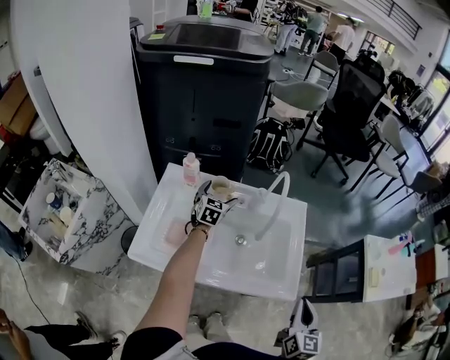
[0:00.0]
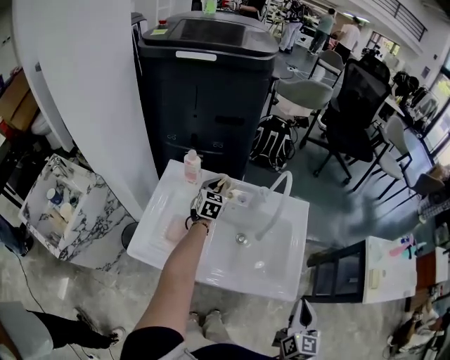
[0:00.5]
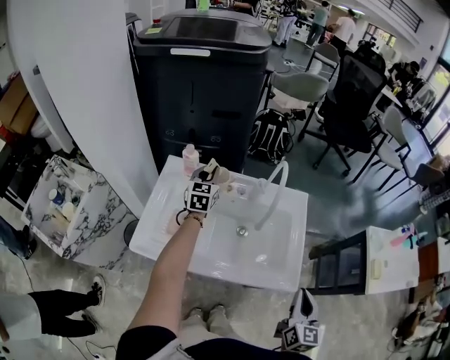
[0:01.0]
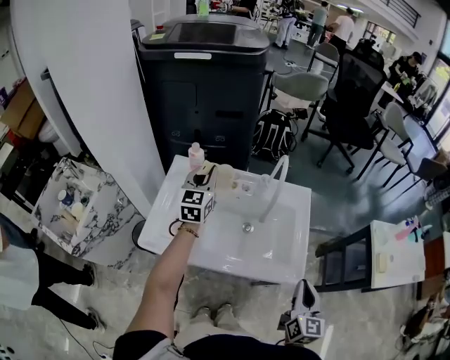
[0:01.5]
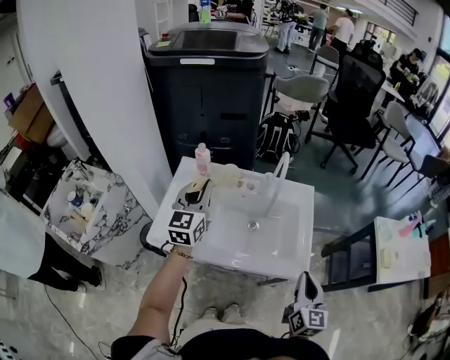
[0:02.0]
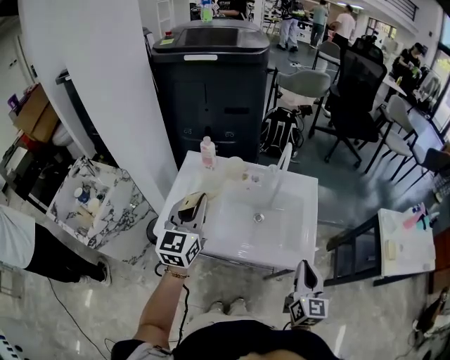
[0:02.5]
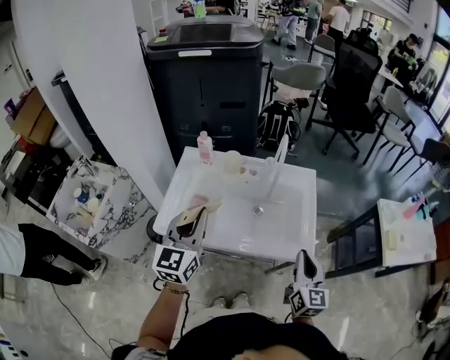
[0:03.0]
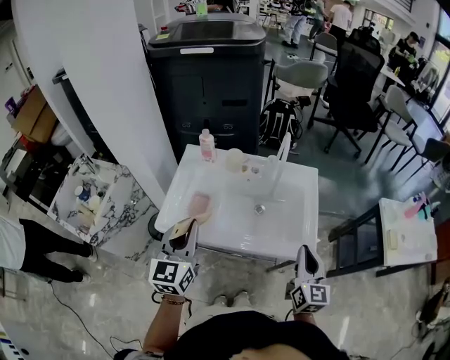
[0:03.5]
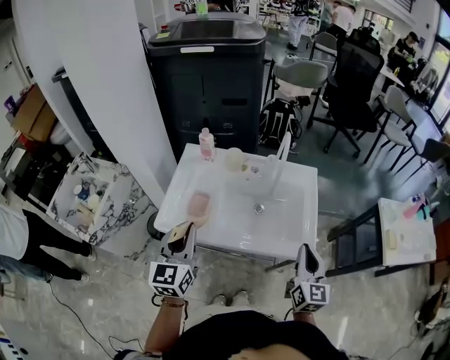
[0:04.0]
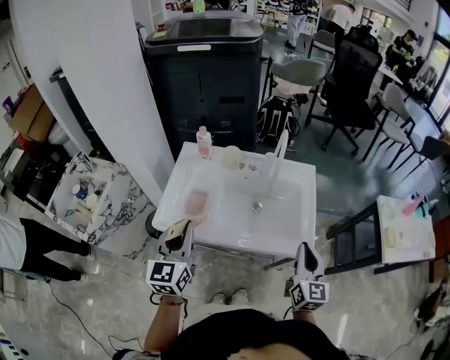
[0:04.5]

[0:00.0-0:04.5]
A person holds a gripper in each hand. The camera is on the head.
0:00.0 to 0:02.0: The left gripper is displaced upward and backward by approximately 30 cm, changes its angle by approximately 30 degrees, and closes up.
0:02.0 to 0:04.5: The left gripper travels backward by approximately 20 cm.

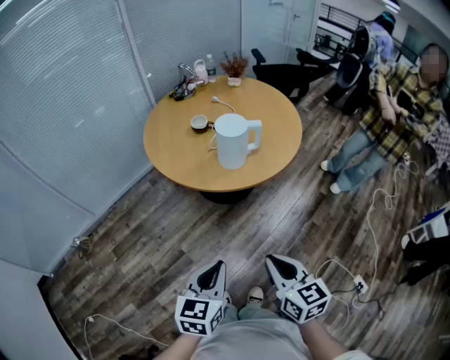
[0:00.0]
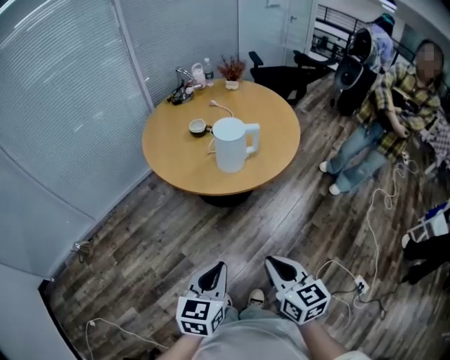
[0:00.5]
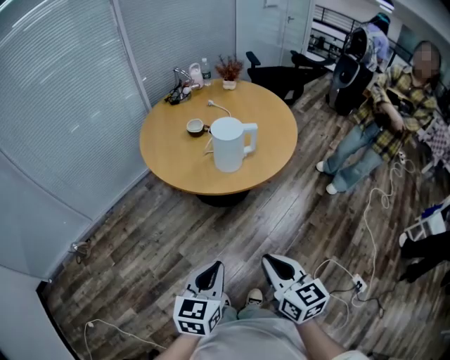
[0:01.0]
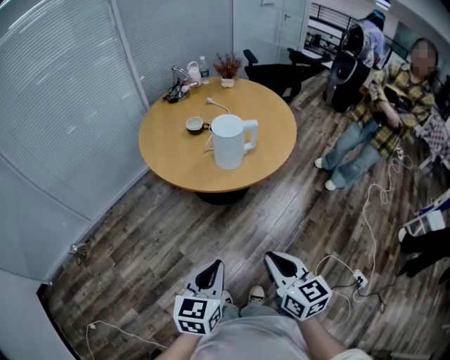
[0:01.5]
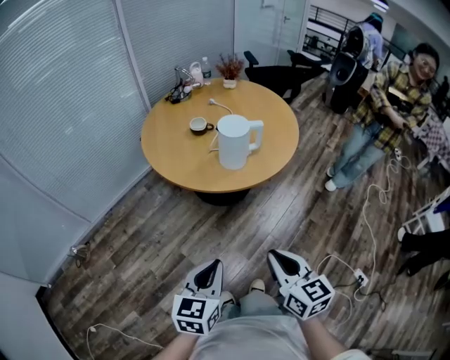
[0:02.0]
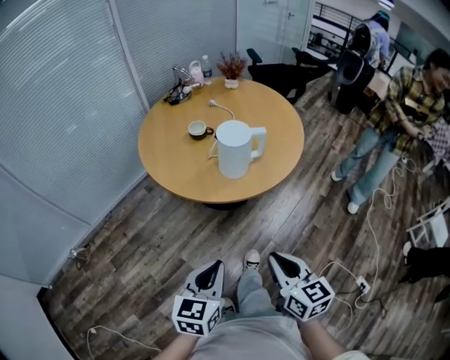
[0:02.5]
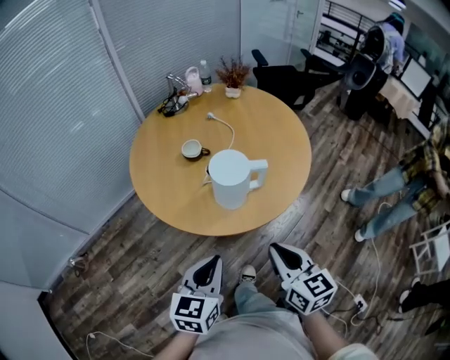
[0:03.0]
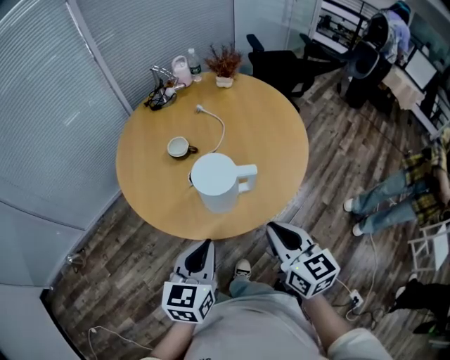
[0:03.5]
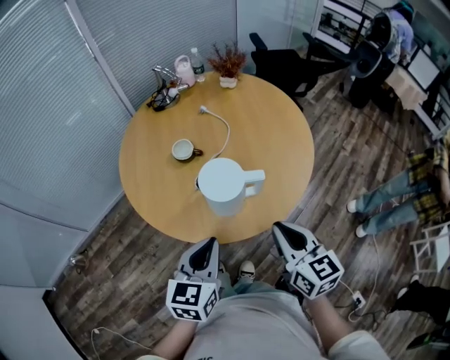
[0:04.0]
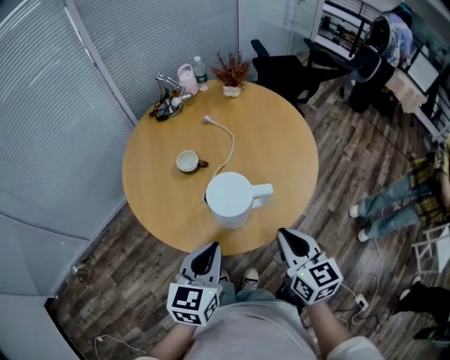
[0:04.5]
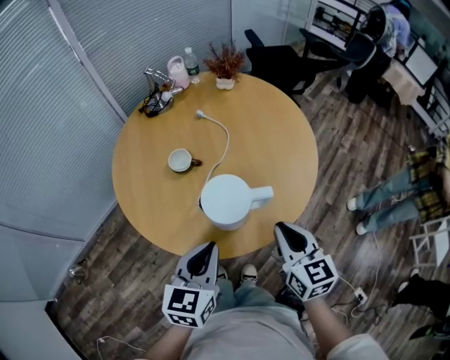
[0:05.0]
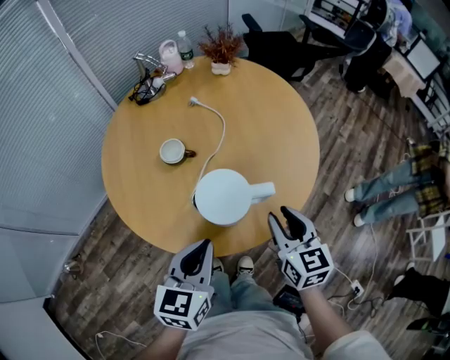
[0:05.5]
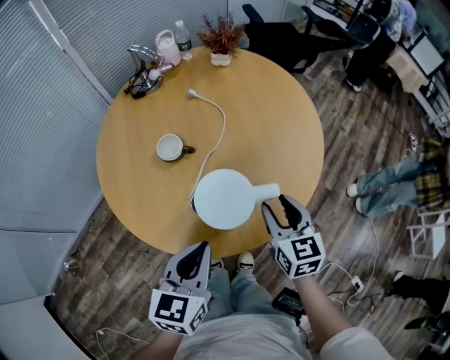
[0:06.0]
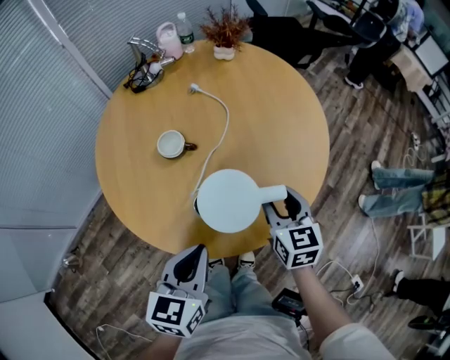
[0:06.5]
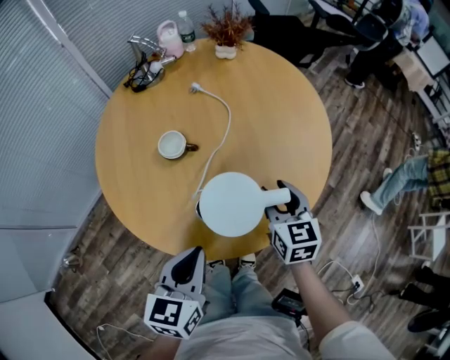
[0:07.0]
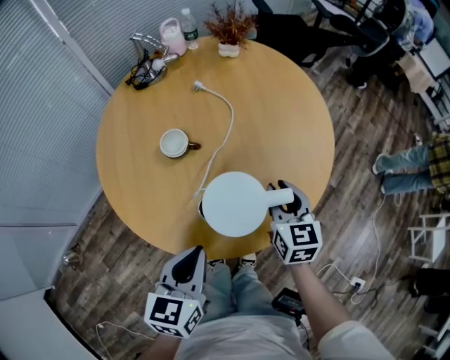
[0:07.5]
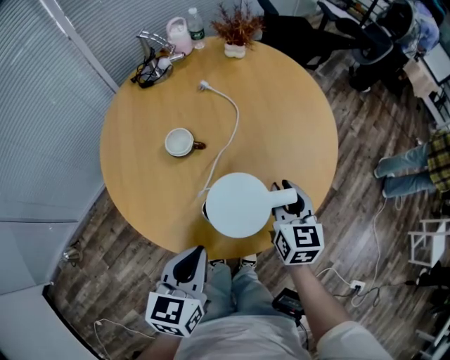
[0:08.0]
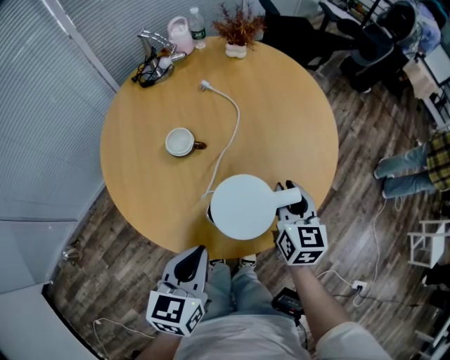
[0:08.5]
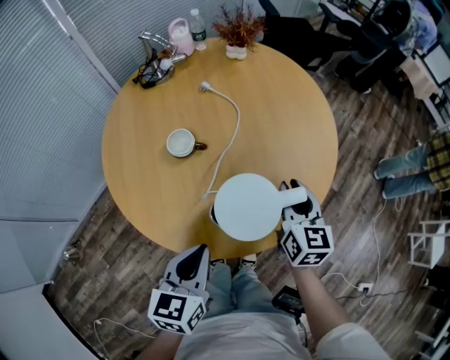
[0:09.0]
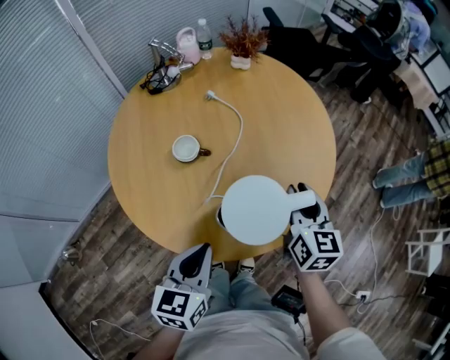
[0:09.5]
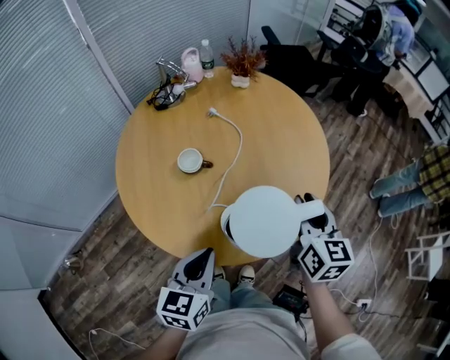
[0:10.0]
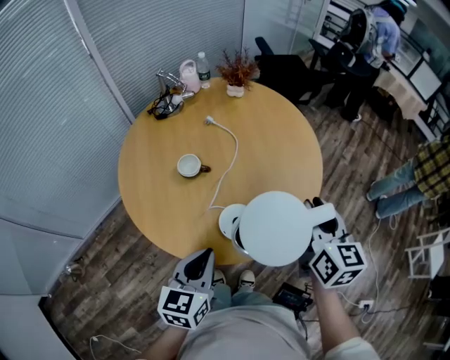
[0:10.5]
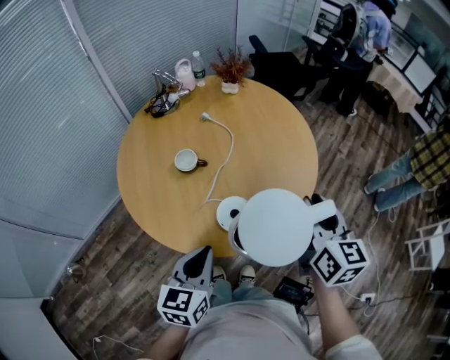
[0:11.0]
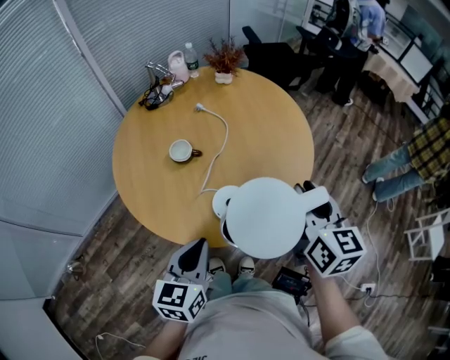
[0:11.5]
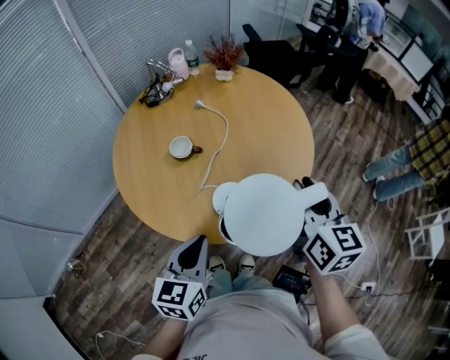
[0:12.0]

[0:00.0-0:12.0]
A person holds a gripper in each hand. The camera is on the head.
0:00.0 to 0:02.0: The grippers make only small movements.
0:02.0 to 0:04.0: The grippers both shift forward by about 35 cm.
0:04.0 to 0:06.0: The left gripper travels forward by some 5 cm. The right gripper heads forward and downward, covering approximately 15 cm, and opens its fingers.
0:06.0 to 0:08.0: The right gripper travels forward by approximately 5 cm.
0:08.0 to 0:10.0: The right gripper shifts about 10 cm upward.
0:10.0 to 0:12.0: The left gripper heads backward, covering some 5 cm. The right gripper heads backward and upward, covering about 10 cm.

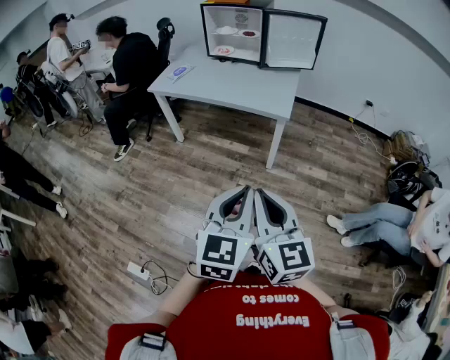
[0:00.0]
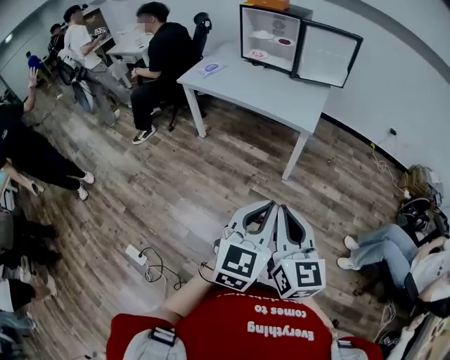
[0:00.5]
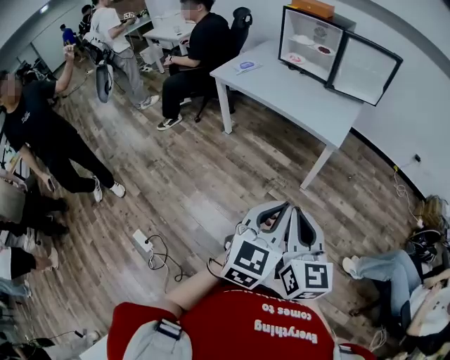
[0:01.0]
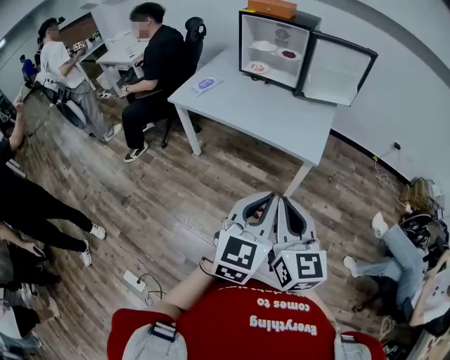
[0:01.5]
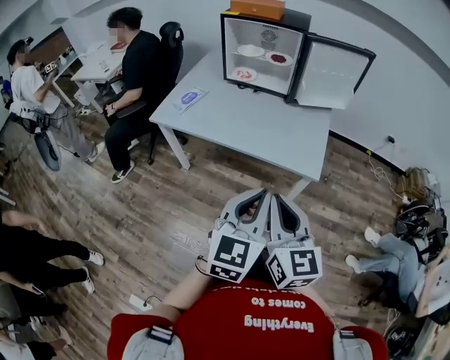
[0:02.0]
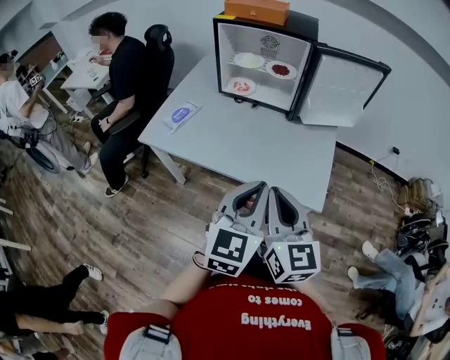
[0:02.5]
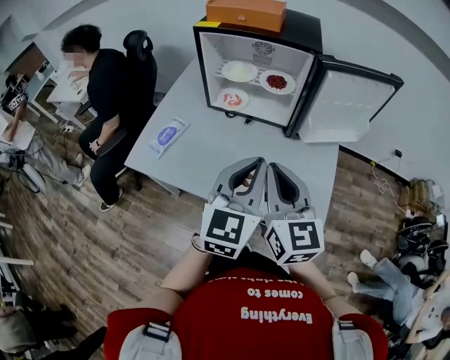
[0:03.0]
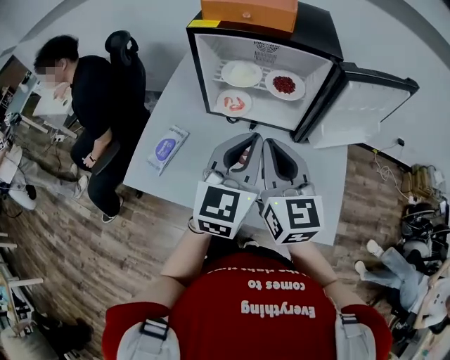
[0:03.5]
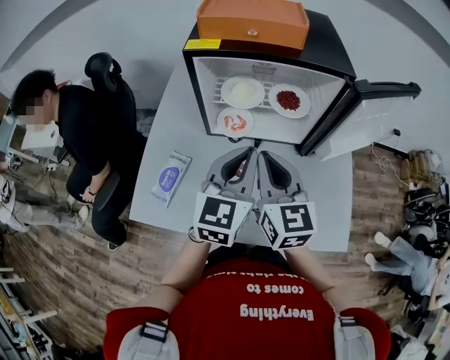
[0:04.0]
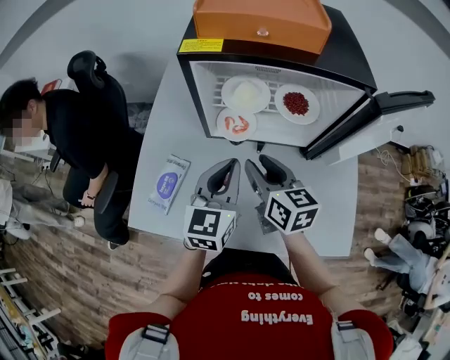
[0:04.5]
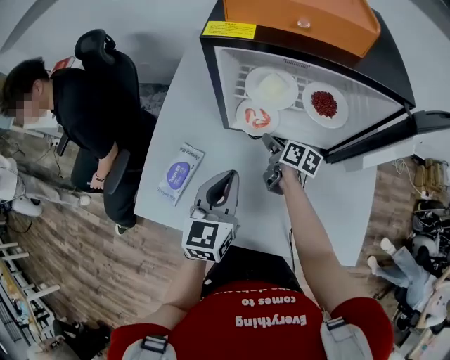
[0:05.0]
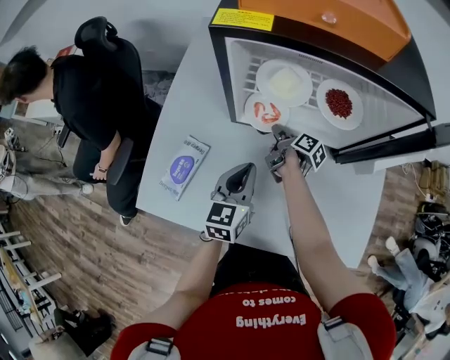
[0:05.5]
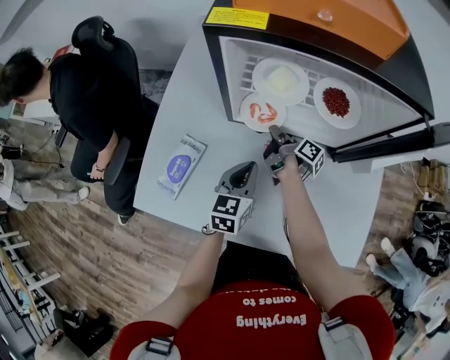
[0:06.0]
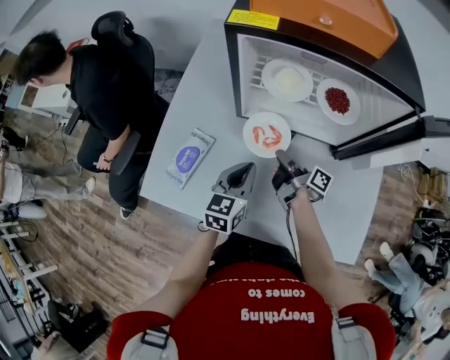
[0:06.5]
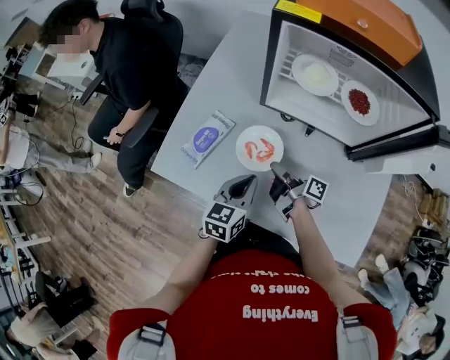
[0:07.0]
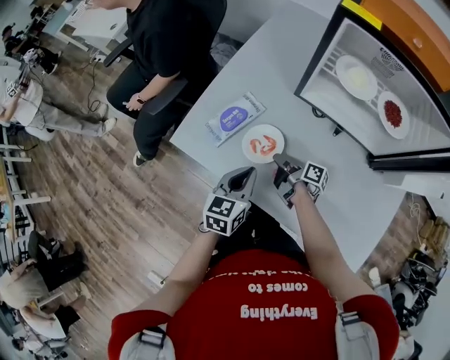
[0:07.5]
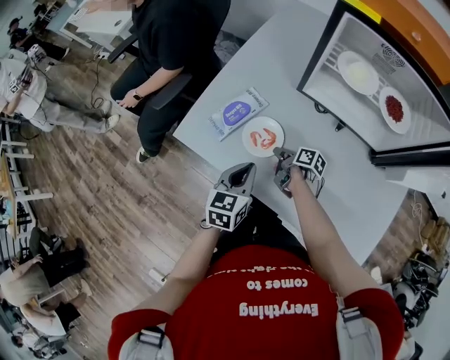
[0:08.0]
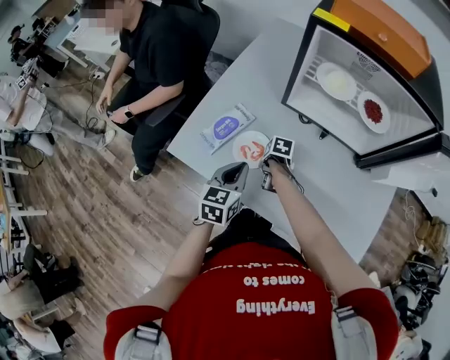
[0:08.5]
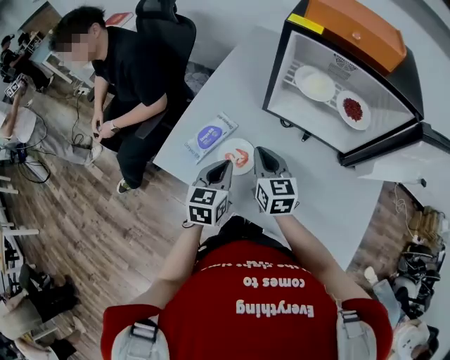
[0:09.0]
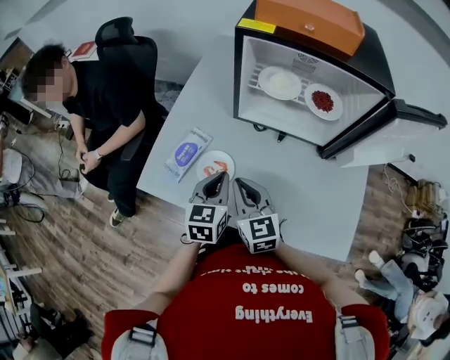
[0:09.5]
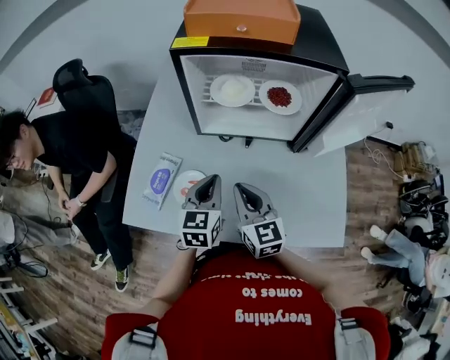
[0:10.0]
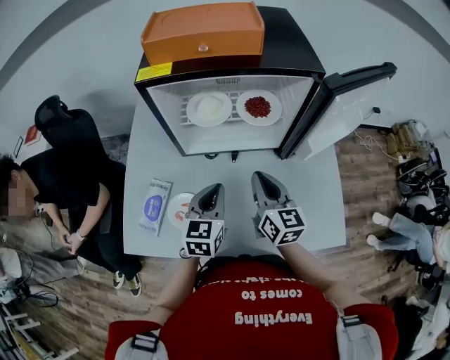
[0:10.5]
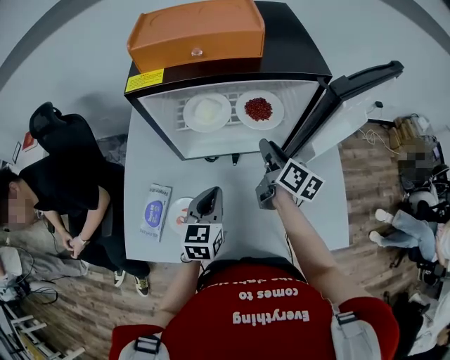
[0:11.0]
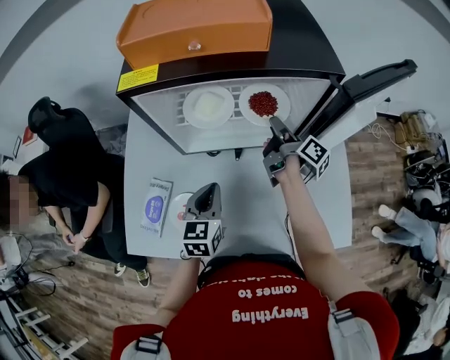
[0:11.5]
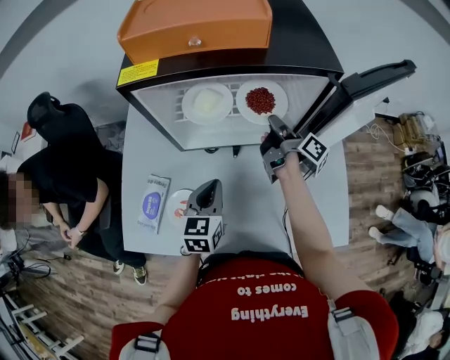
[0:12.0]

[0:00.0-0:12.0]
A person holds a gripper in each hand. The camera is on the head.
0:00.0 to 0:02.0: Both grippers travel together forward, some 35 cm.
0:02.0 to 0:04.0: The pair of grippers is taken forward, about 60 cm.
0:04.0 to 0:06.0: The right gripper travels downward and forward by roughly 40 cm, rotates around the line of its fingers by some 80 degrees, clockwise from behind, and opens, then closes again. The left gripper travels downward by some 25 cm, and swivels approximately 20 degrees.
0:06.0 to 0:08.0: The right gripper shifts by approximately 25 cm, and changes its angle by approximately 40 degrees; the left gripper changes place by some 20 cm.
0:08.0 to 0:10.0: The left gripper changes place by approximately 15 cm, and rotates some 20 degrees; the right gripper heads upward, covering approximately 25 cm, and changes its angle by approximately 80 degrees.
0:10.0 to 0:12.0: The left gripper goes about 5 cm forward. Meanwhile the right gripper travels forward and to the right by roughly 30 cm, rolls clockwise, seen from behind, by some 80 degrees, and opens, then closes once more.
